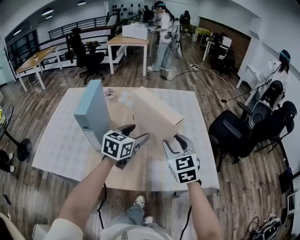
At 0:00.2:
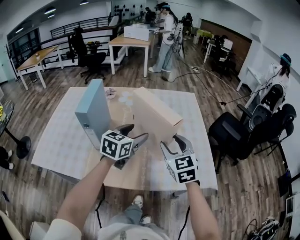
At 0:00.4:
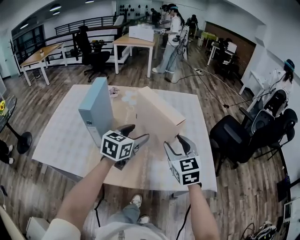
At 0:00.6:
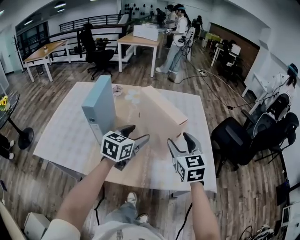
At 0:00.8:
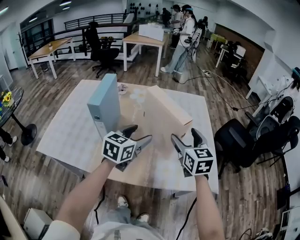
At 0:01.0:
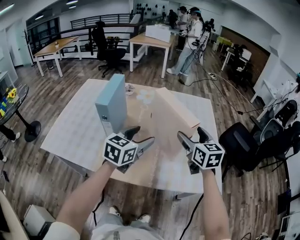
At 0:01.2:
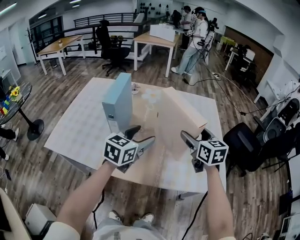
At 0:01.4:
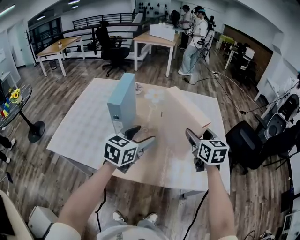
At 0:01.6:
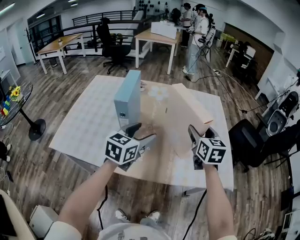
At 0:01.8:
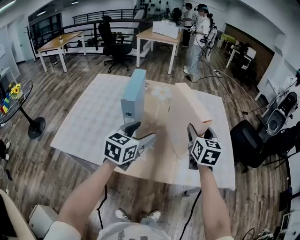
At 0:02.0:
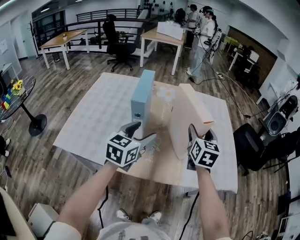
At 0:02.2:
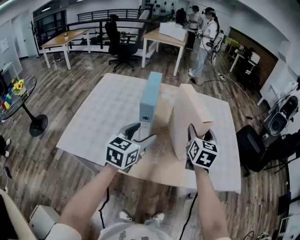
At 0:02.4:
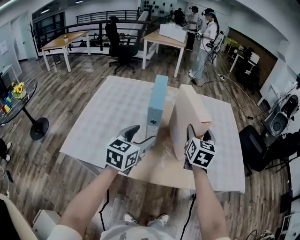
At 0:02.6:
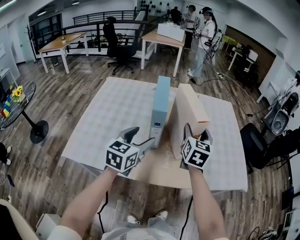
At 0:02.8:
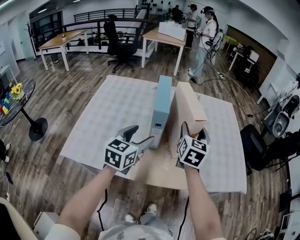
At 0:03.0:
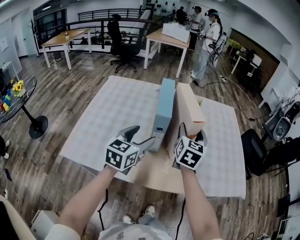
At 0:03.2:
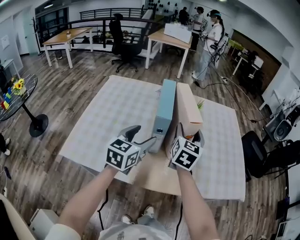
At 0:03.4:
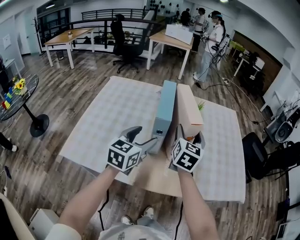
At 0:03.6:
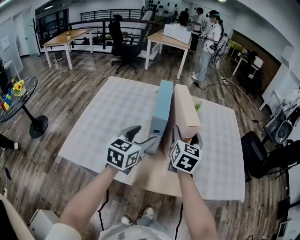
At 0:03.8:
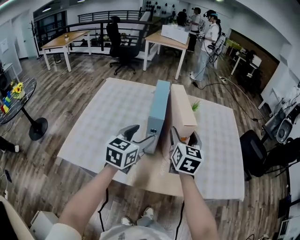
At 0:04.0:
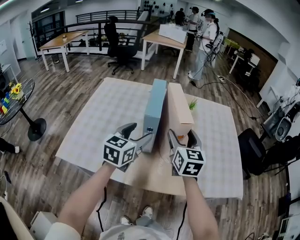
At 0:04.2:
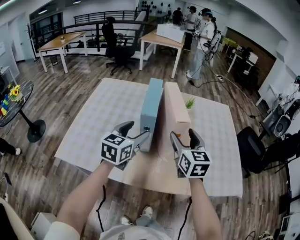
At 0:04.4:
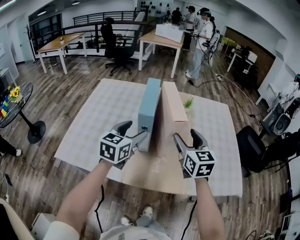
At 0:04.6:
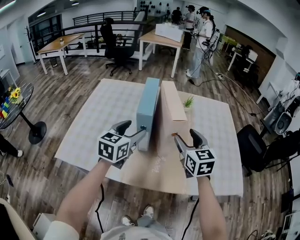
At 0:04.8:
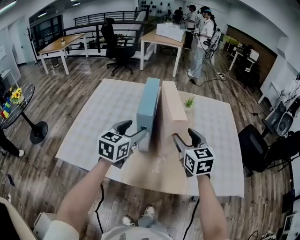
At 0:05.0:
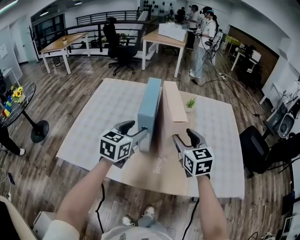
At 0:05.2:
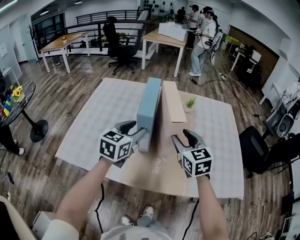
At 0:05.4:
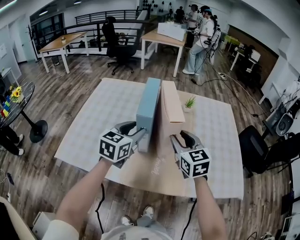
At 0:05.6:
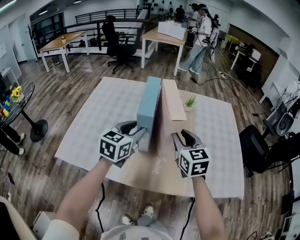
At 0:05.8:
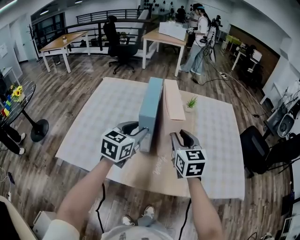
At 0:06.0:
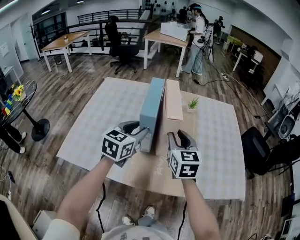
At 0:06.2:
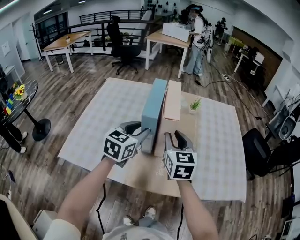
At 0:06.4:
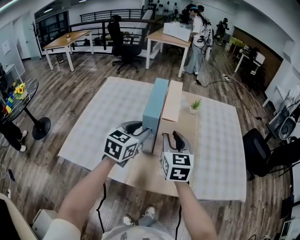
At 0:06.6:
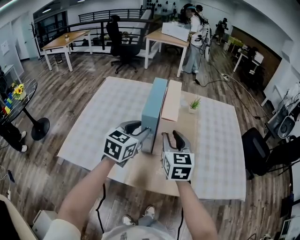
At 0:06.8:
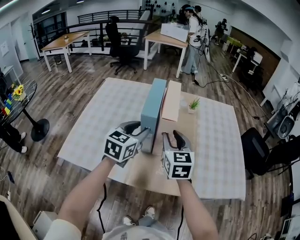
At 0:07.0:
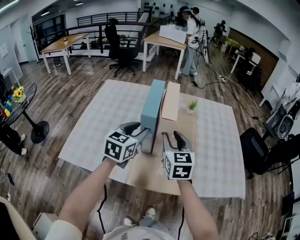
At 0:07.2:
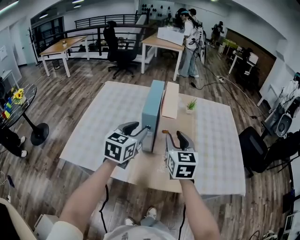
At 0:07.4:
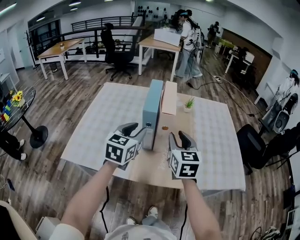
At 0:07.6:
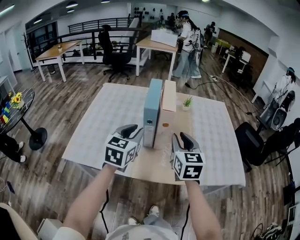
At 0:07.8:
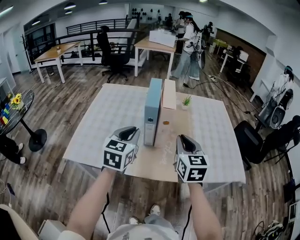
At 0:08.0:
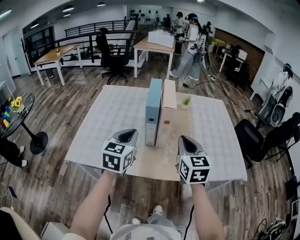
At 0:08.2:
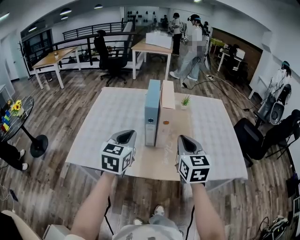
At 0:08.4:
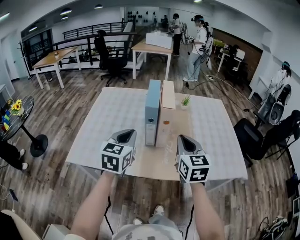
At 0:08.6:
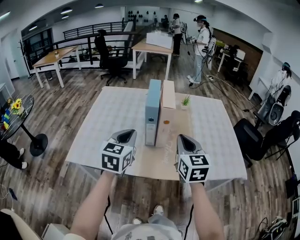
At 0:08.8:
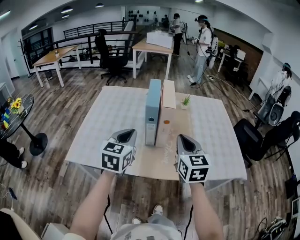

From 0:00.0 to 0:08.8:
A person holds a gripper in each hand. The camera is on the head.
From 0:00.0 to 0:01.4: The left gripper is displaced to the left and backward by approximately 10 cm. The right gripper changes its angle by approximately 20 degrees, and opens its fingers.
From 0:01.4 to 0:03.0: Both grippers travel together to the left, approximately 20 cm. The right gripper rotates roughly 30 degrees.
From 0:03.0 to 0:04.4: The right gripper changes its angle by approximately 30 degrees.
From 0:04.4 to 0:05.8: The right gripper closes up; the left gripper closes.
From 0:05.8 to 0:07.4: The right gripper travels backward by about 5 cm, while the left gripper ends up some 5 cm from where it was.
From 0:07.4 to 0:08.8: The two grippers go roughly 5 cm backward. The left gripper closes up.

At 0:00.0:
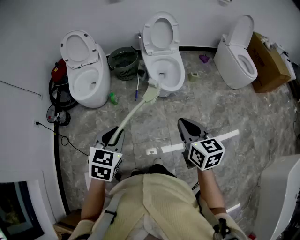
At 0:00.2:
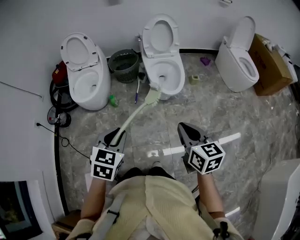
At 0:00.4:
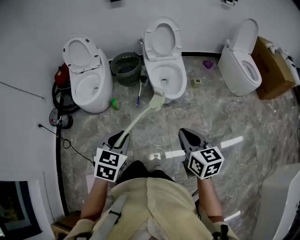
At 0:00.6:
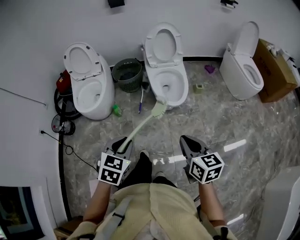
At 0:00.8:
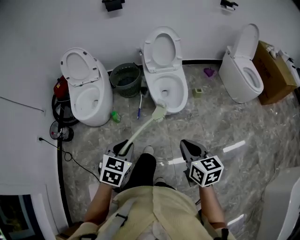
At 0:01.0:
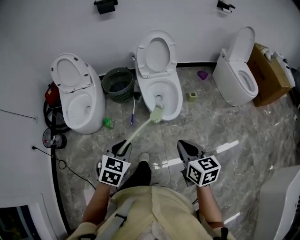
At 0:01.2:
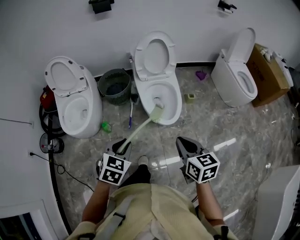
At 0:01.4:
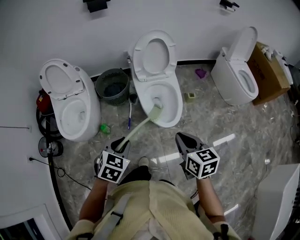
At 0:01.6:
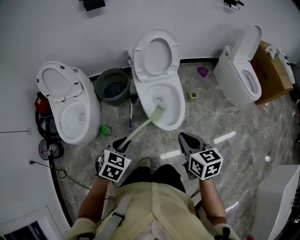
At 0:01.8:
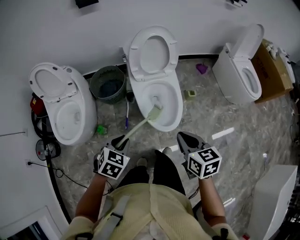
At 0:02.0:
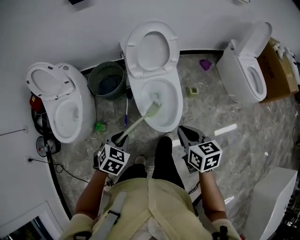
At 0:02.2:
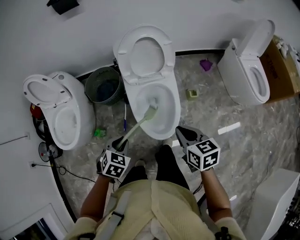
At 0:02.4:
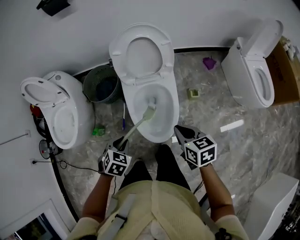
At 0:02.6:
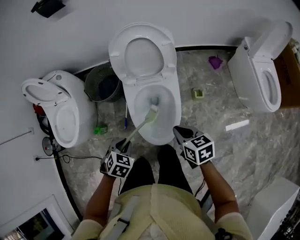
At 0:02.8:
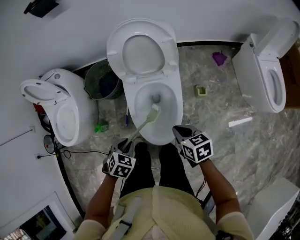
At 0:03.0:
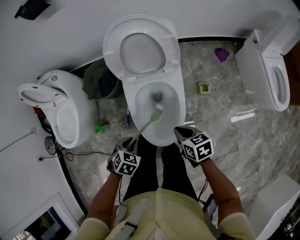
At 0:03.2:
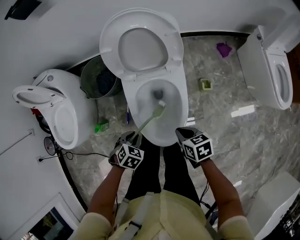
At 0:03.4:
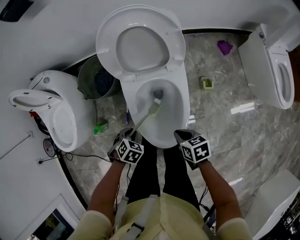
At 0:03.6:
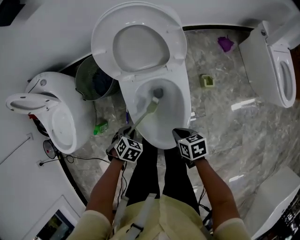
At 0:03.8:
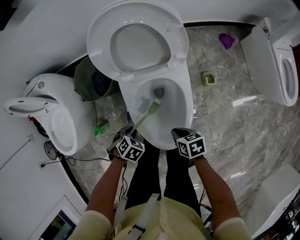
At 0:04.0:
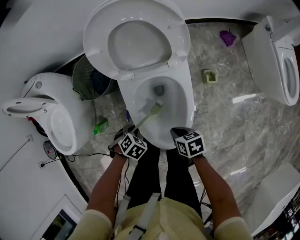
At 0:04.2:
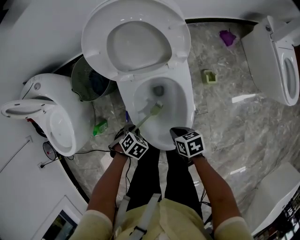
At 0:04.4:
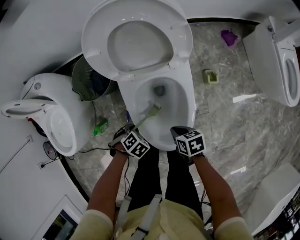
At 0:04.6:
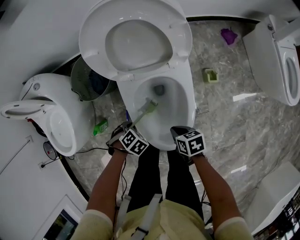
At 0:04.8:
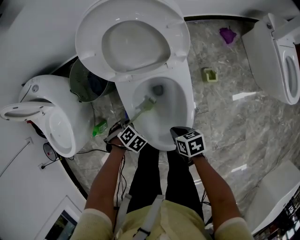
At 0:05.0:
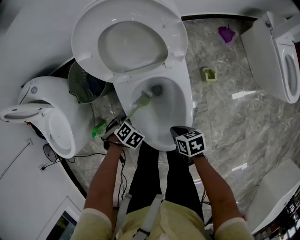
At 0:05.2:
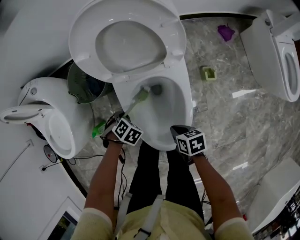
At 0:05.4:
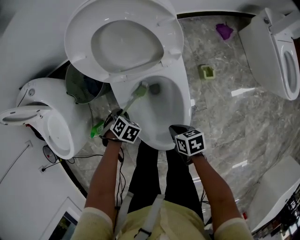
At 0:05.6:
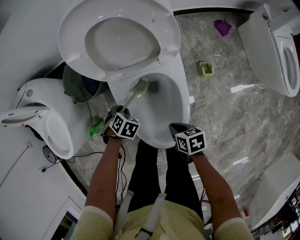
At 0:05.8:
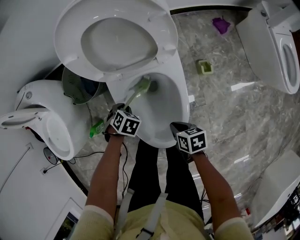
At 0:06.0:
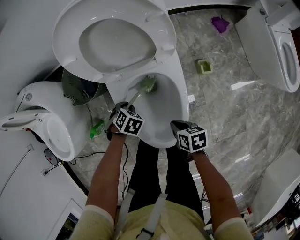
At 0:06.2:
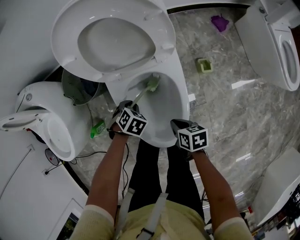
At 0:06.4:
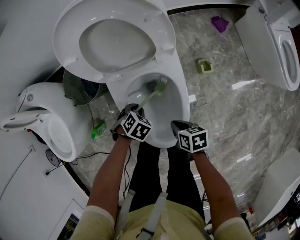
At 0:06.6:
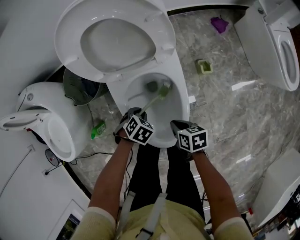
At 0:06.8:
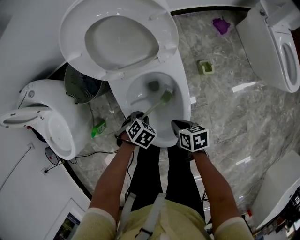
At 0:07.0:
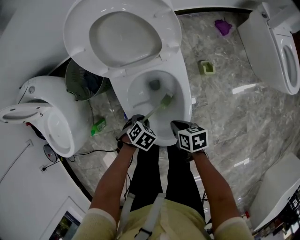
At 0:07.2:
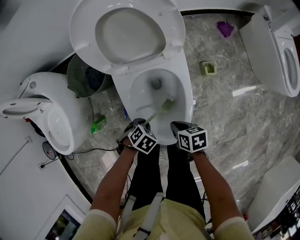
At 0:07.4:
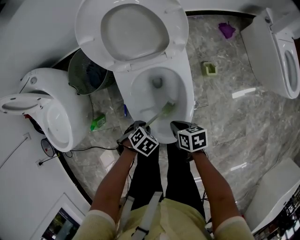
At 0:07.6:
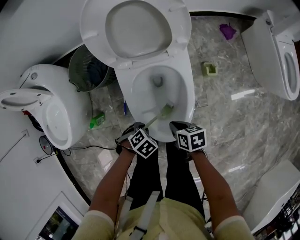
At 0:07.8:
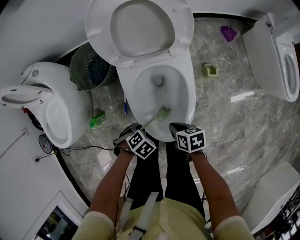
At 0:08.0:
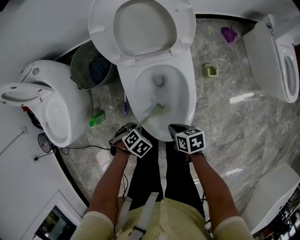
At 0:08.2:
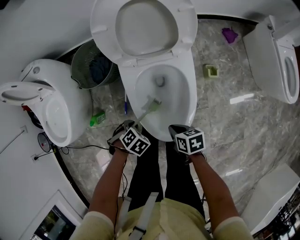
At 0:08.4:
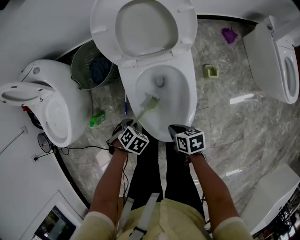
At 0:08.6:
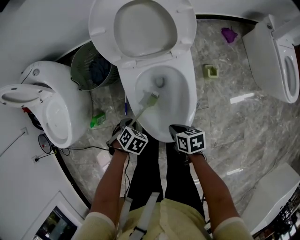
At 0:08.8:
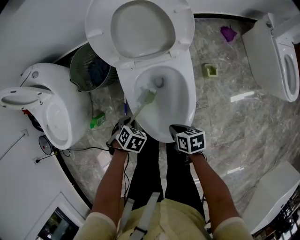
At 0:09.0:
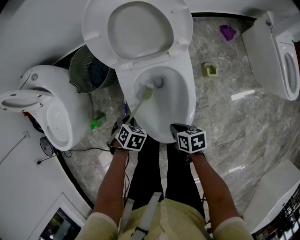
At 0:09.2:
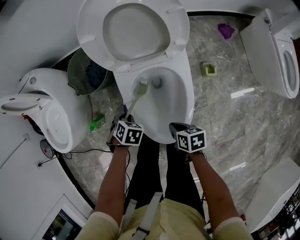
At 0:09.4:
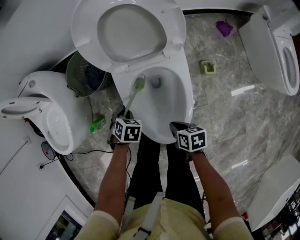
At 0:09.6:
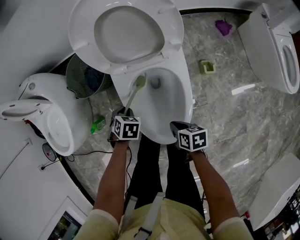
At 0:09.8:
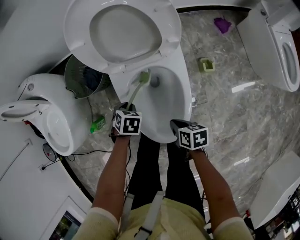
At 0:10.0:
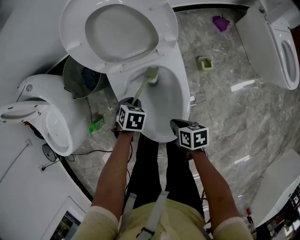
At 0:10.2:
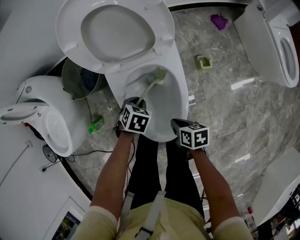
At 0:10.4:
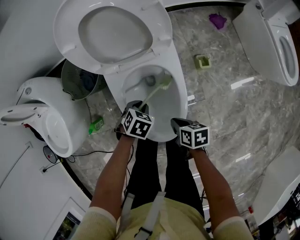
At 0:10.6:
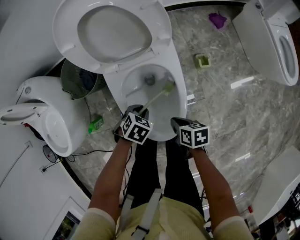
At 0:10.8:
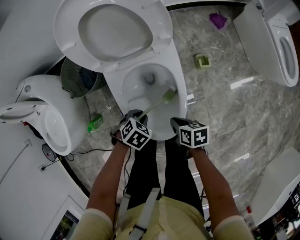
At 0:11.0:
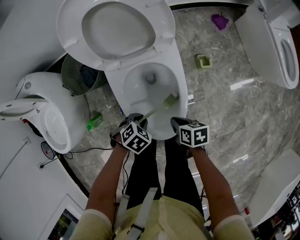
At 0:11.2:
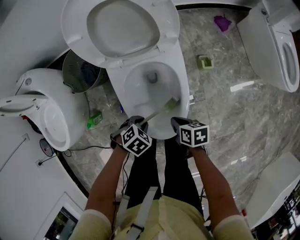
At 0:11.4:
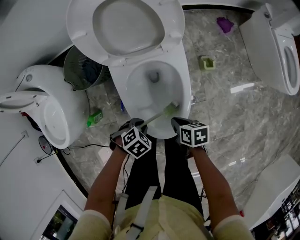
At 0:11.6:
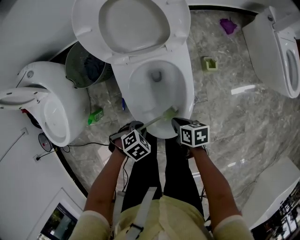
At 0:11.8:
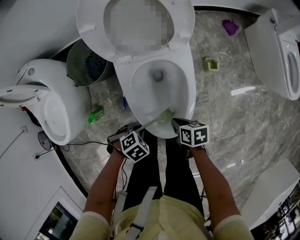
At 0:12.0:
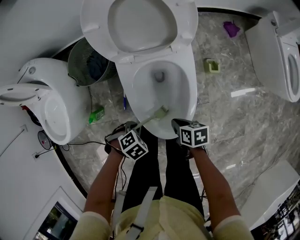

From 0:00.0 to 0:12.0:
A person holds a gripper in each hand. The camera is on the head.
From 0:00.0 to 0:01.6: The right gripper moves approximately 30 cm.
From 0:01.6 to 0:03.0: The right gripper ends up approximately 35 cm from where it was, and rotates about 30 degrees.
From 0:03.0 to 0:04.4: The right gripper travels downward by roughly 15 cm.
From 0:06.0 to 0:07.6: The right gripper changes place by roughly 5 cm.

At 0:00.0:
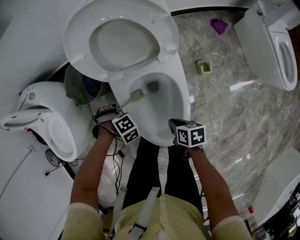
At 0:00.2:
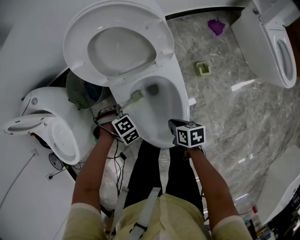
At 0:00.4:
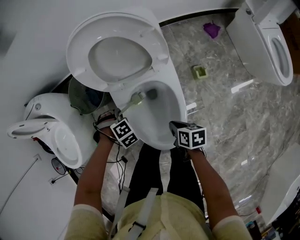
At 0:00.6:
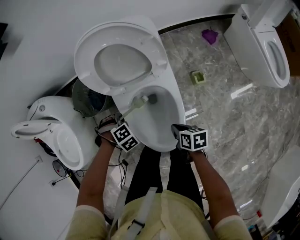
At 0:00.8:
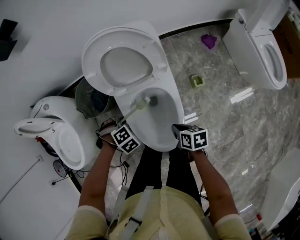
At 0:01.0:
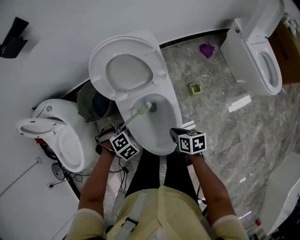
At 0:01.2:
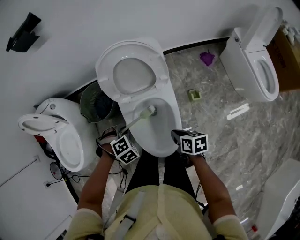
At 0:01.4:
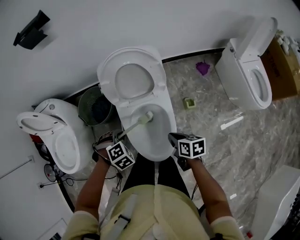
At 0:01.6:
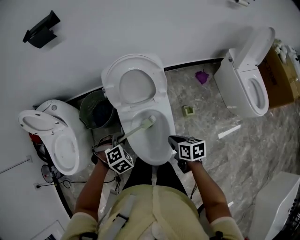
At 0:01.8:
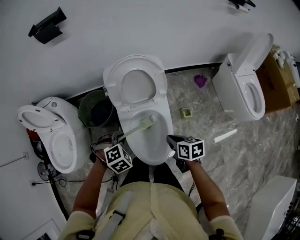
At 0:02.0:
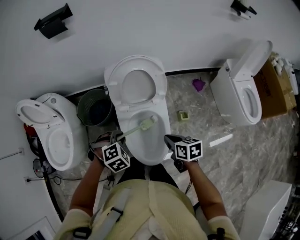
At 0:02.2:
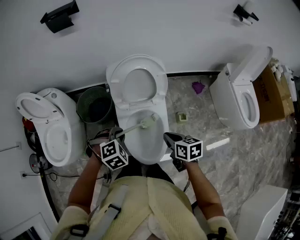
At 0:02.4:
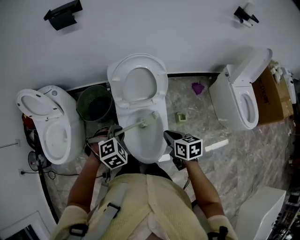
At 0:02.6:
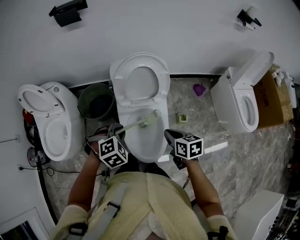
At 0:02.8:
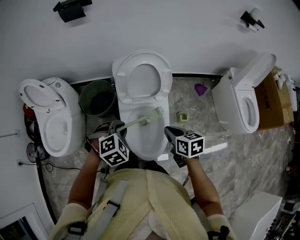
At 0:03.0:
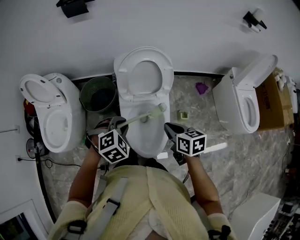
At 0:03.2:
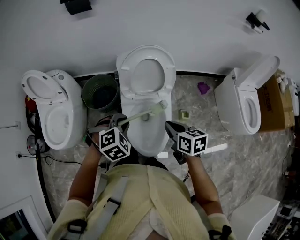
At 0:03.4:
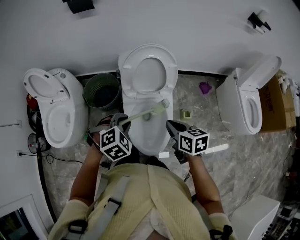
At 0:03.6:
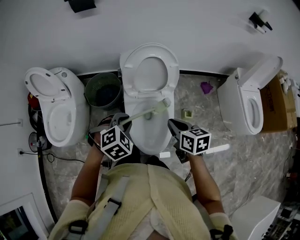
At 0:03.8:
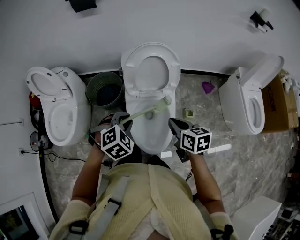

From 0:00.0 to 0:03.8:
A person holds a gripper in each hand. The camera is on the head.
From 0:00.0 to 0:01.2: The right gripper moves upward, approximately 15 cm.
From 0:01.2 to 0:02.6: The right gripper goes some 15 cm upward, and rotates about 20 degrees.
